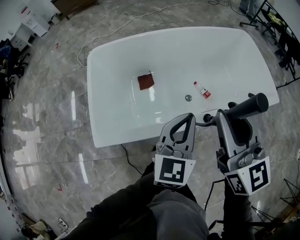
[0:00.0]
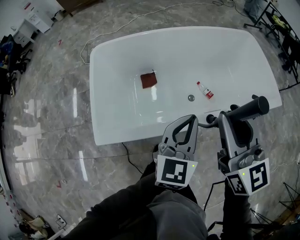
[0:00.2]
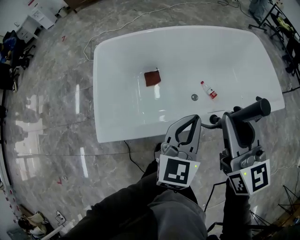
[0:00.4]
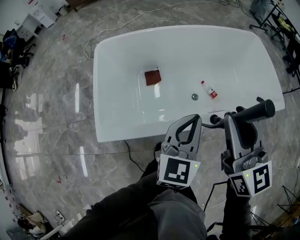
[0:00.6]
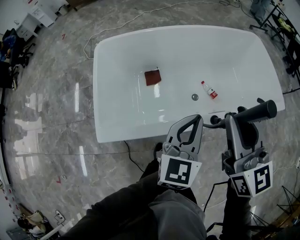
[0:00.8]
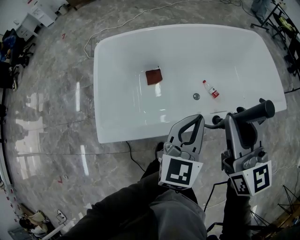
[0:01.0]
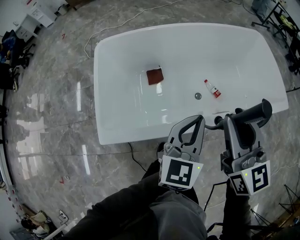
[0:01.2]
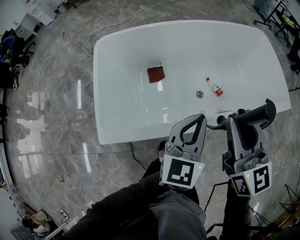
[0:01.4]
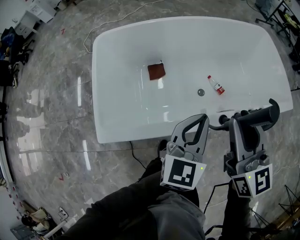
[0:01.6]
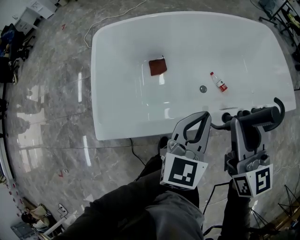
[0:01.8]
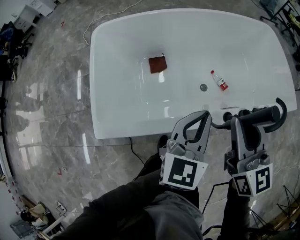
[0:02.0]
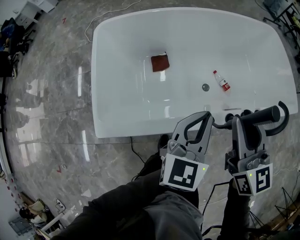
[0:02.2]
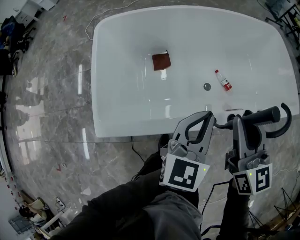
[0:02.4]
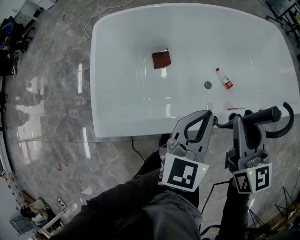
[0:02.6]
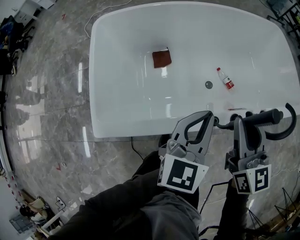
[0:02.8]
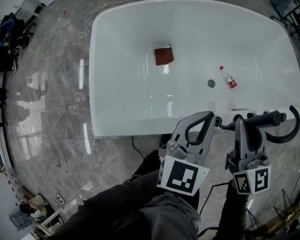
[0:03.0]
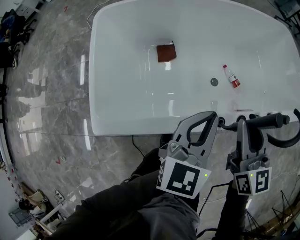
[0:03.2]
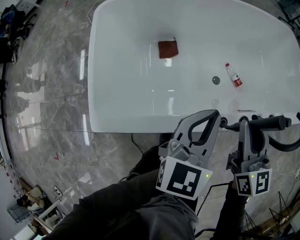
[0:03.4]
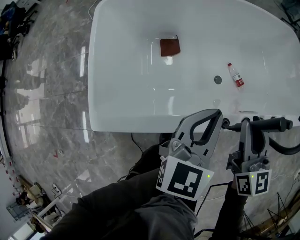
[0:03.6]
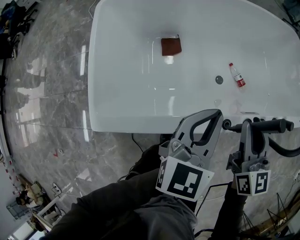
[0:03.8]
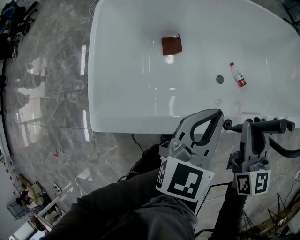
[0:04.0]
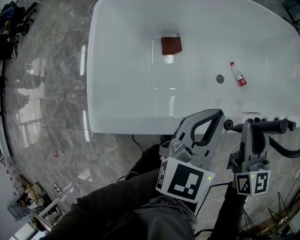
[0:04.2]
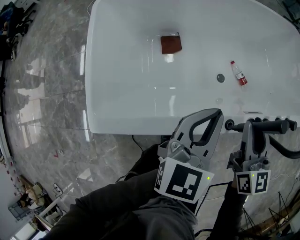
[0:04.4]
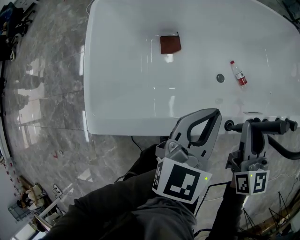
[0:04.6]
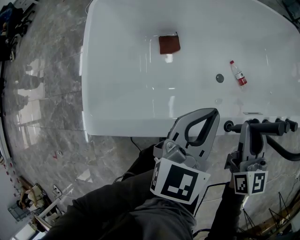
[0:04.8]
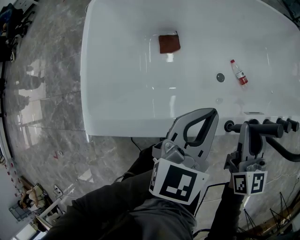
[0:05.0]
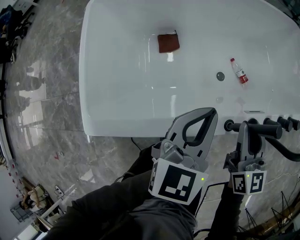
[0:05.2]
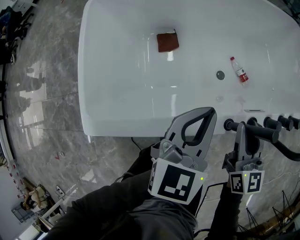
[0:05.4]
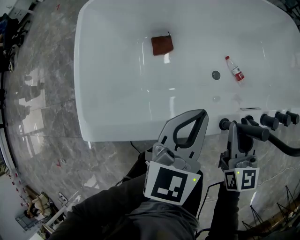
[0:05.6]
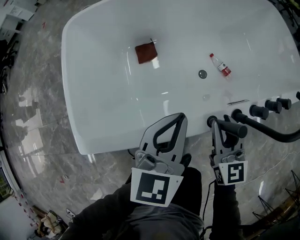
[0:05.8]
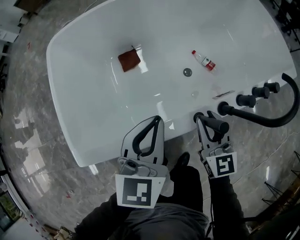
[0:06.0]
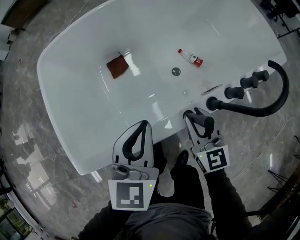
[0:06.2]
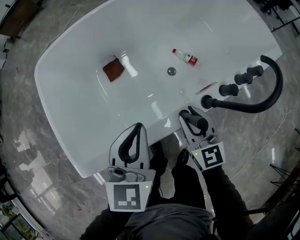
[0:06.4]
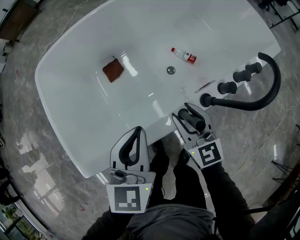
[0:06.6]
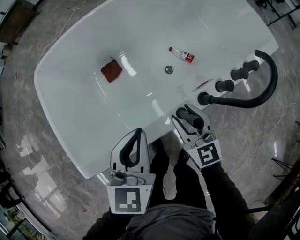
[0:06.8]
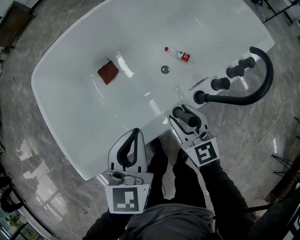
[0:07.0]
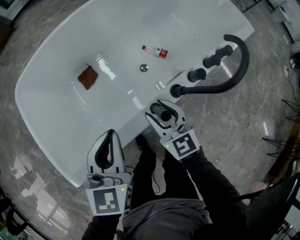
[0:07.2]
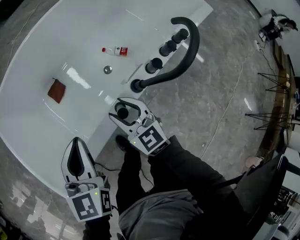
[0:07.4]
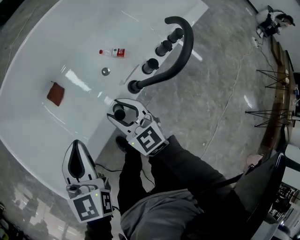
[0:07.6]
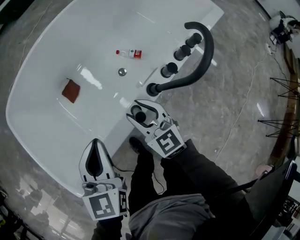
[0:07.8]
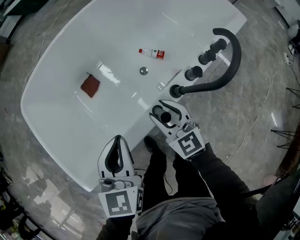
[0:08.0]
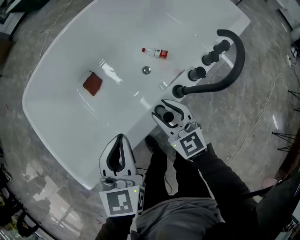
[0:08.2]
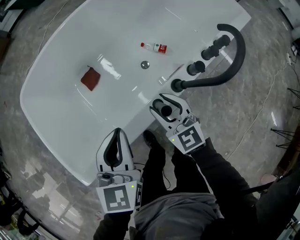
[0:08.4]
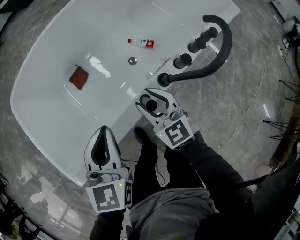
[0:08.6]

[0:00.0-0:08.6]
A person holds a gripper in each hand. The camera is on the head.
0:00.0 to 0:01.4: The right gripper is displaced downward by roughly 5 cm; the left gripper ends up some 5 cm from where it was.
0:01.4 to 0:02.8: The right gripper goes some 10 cm downward. The left gripper moves downward, roughly 5 cm.
0:02.8 to 0:04.4: The right gripper is displaced downward by approximately 10 cm; the left gripper shifts by approximately 5 cm.
0:04.4 to 0:05.8: The right gripper shifts some 10 cm downward.
0:05.8 to 0:08.6: The grippers move only a little.

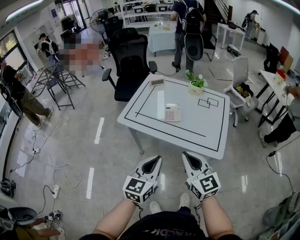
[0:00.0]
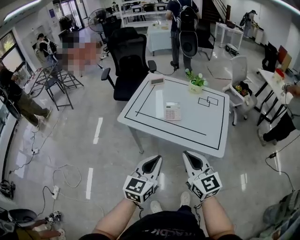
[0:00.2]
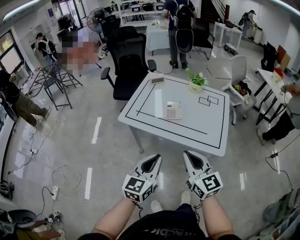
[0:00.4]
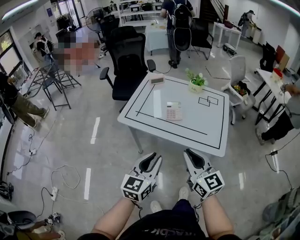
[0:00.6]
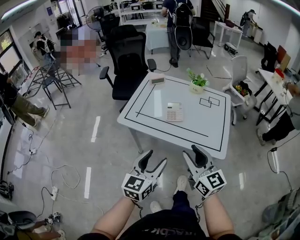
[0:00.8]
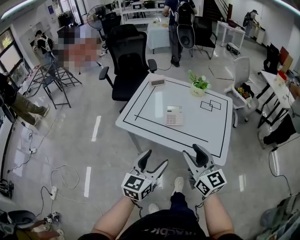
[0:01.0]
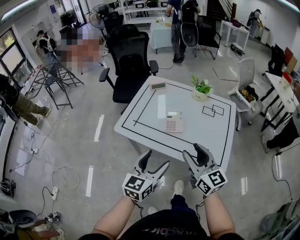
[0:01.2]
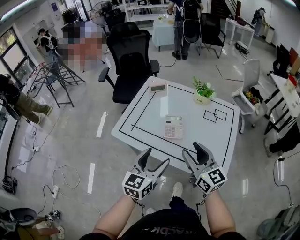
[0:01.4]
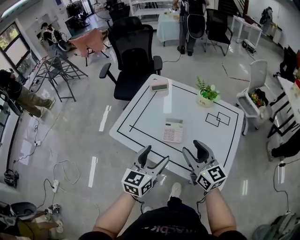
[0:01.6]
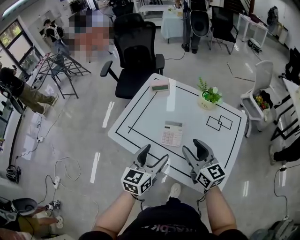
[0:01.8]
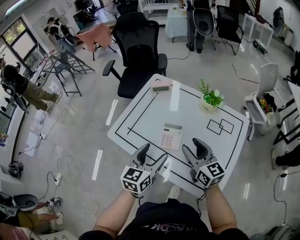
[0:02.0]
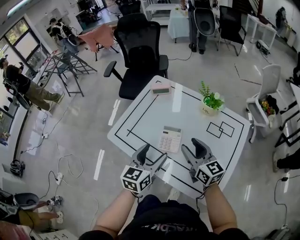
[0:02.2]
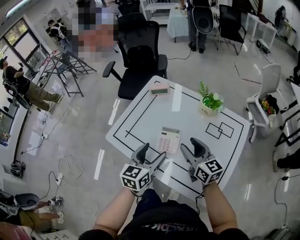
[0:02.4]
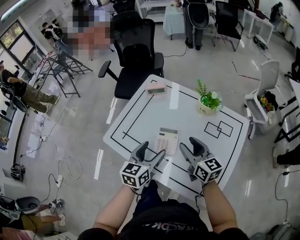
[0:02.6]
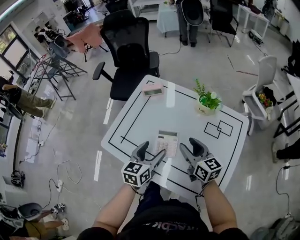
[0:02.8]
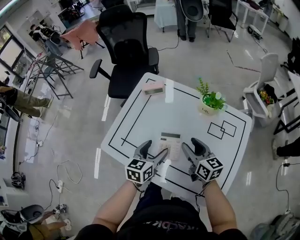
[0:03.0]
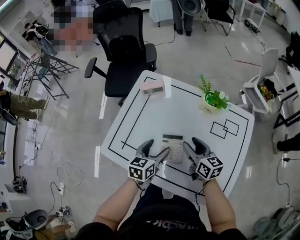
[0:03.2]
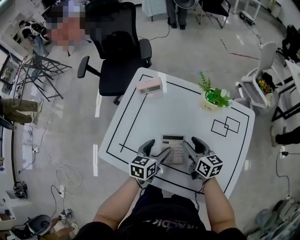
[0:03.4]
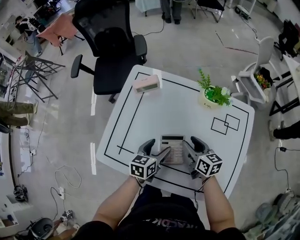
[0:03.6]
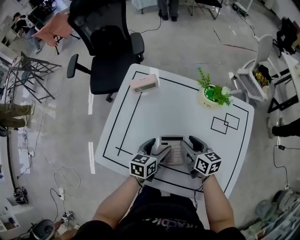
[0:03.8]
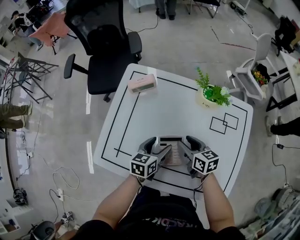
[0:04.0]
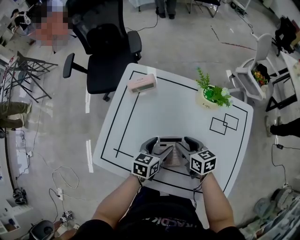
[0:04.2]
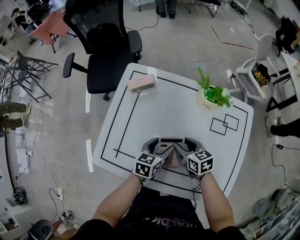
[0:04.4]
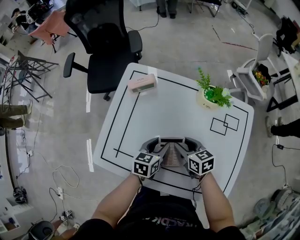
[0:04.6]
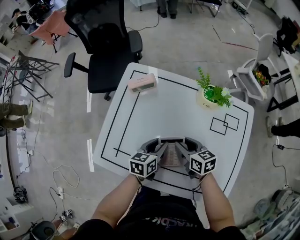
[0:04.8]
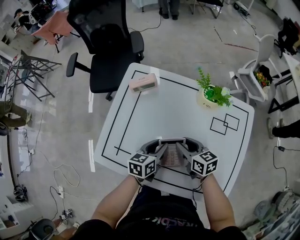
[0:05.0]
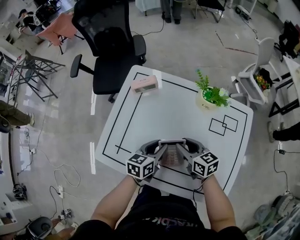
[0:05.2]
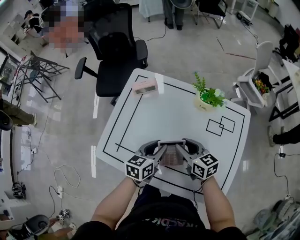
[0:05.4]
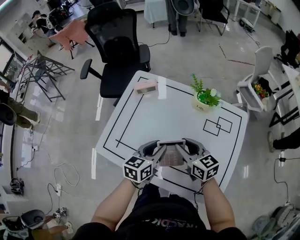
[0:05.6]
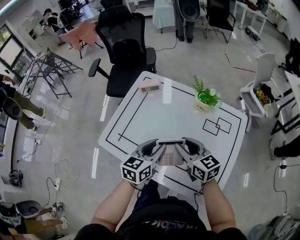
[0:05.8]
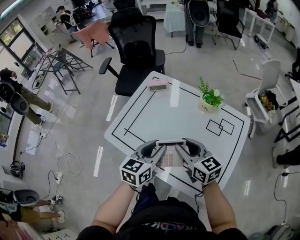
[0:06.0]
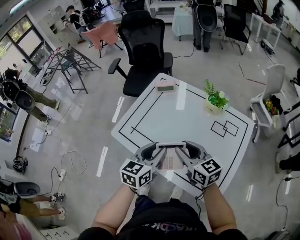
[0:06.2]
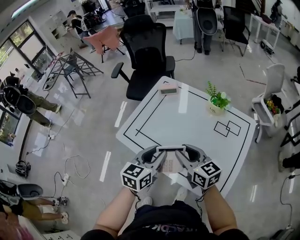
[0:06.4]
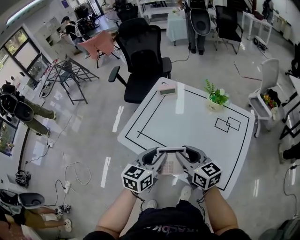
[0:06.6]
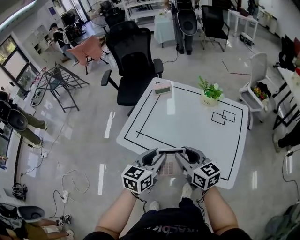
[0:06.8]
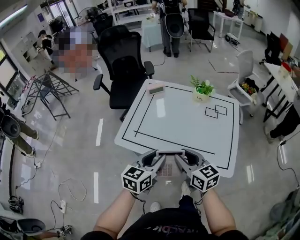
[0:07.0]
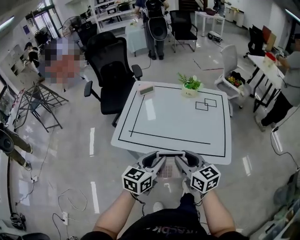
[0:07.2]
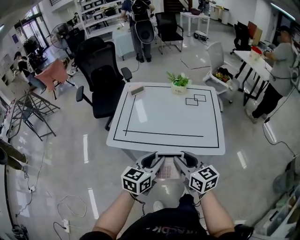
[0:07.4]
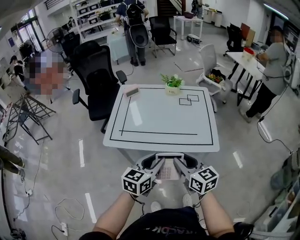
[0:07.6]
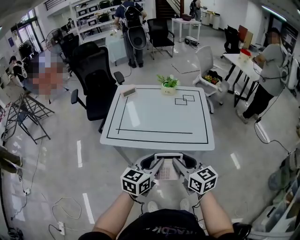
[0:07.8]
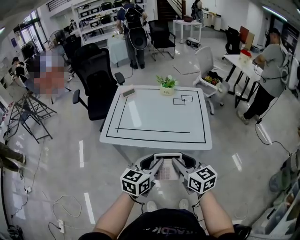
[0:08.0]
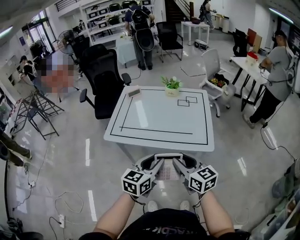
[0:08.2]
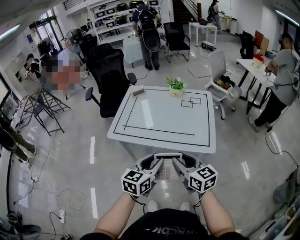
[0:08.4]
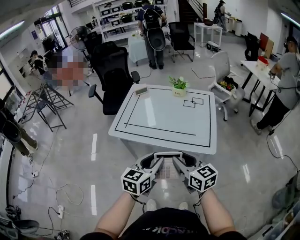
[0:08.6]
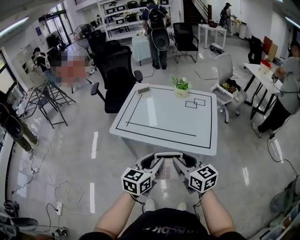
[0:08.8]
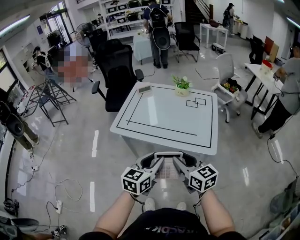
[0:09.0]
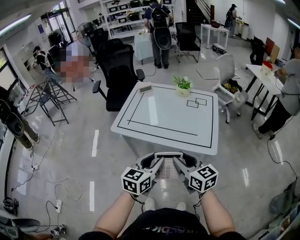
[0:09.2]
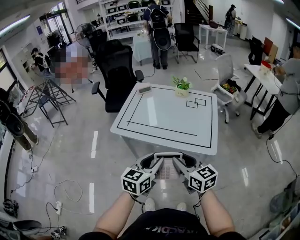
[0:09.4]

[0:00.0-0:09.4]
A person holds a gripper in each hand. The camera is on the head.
0:00.0 to 0:01.6: Both grippers move forward, roughly 25 cm. The right gripper opens. Meanwhile the left gripper opens up.
0:01.6 to 0:03.2: Both grippers move forward and downward, some 25 cm. The right gripper swivels some 20 degrees; the left gripper rotates some 20 degrees.
0:03.2 to 0:04.8: The grippers both shift downward by some 5 cm. The left gripper closes its fingers.
0:04.8 to 0:06.2: The two grippers go approximately 25 cm upward and backward. The right gripper turns by about 30 degrees. The left gripper swivels approximately 30 degrees.
0:06.2 to 0:07.8: The left gripper shifts by some 25 cm, and changes its angle by some 30 degrees, while the right gripper changes place by about 30 cm, and turns by about 30 degrees.
0:07.8 to 0:09.4: The left gripper shifts roughly 5 cm backward.

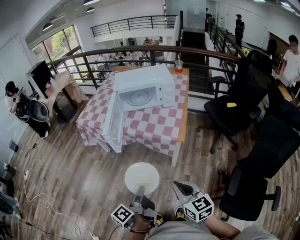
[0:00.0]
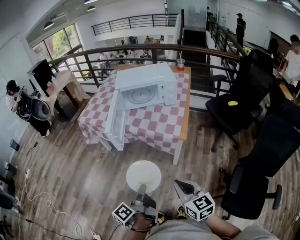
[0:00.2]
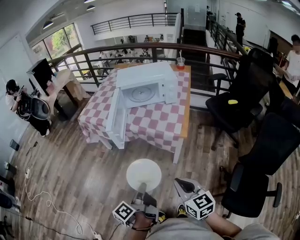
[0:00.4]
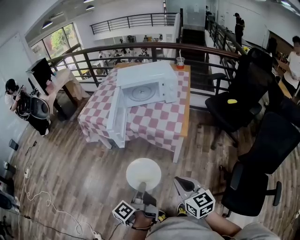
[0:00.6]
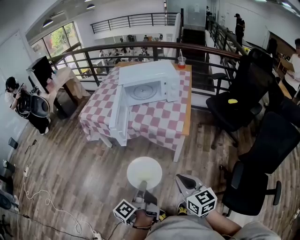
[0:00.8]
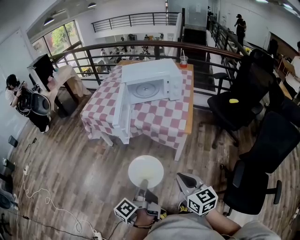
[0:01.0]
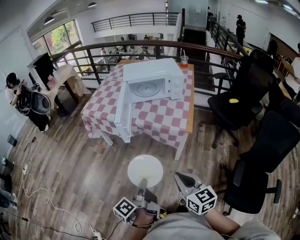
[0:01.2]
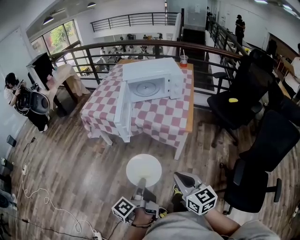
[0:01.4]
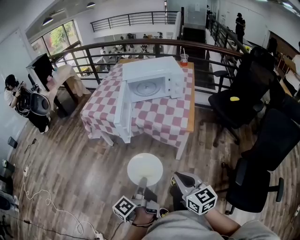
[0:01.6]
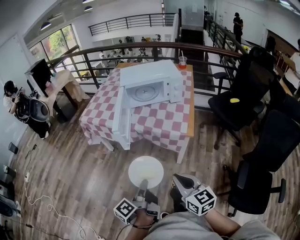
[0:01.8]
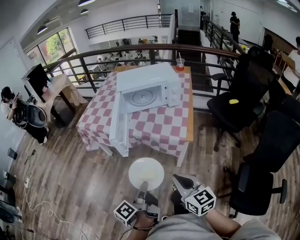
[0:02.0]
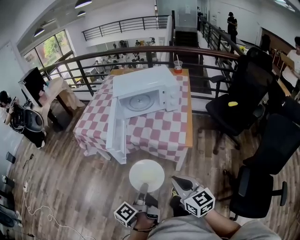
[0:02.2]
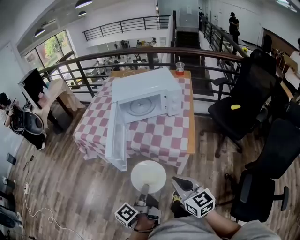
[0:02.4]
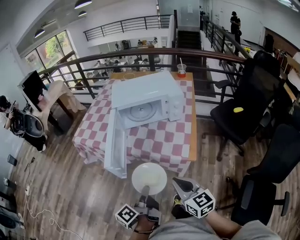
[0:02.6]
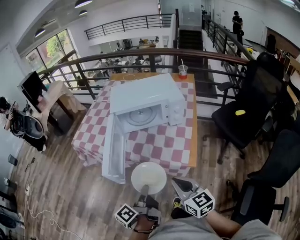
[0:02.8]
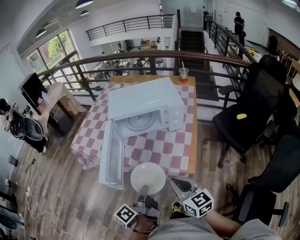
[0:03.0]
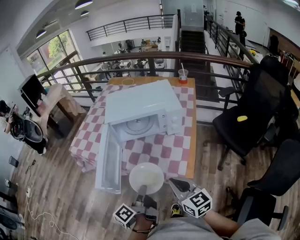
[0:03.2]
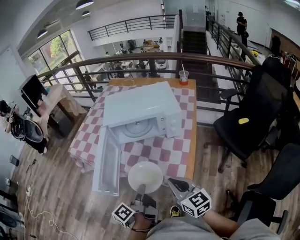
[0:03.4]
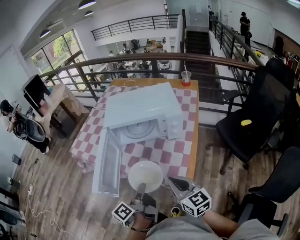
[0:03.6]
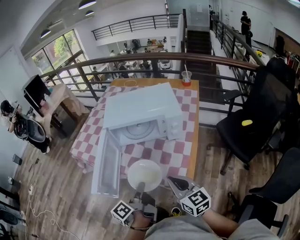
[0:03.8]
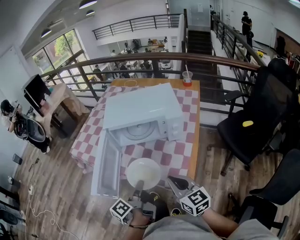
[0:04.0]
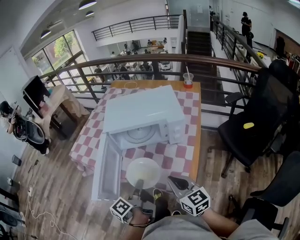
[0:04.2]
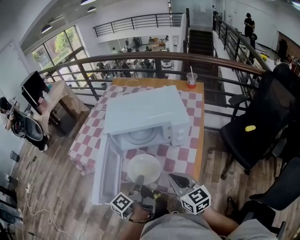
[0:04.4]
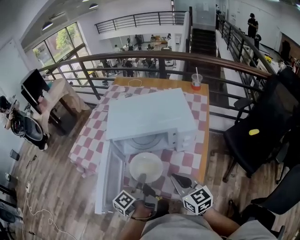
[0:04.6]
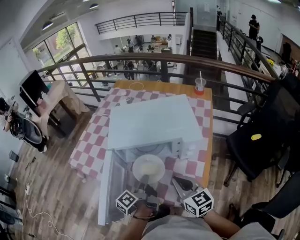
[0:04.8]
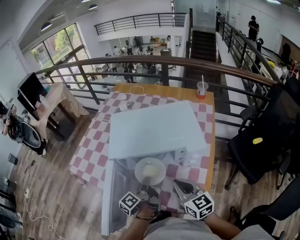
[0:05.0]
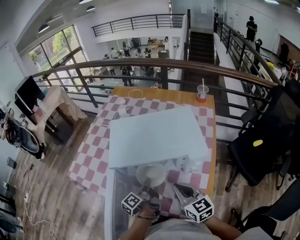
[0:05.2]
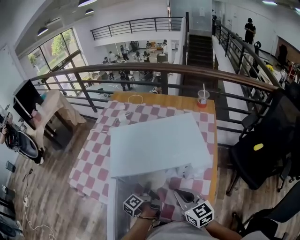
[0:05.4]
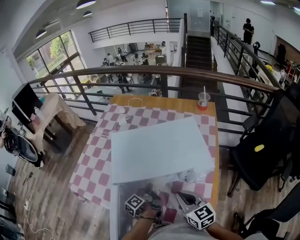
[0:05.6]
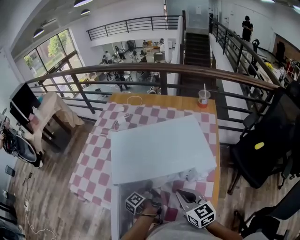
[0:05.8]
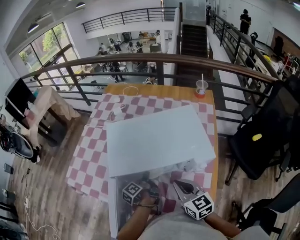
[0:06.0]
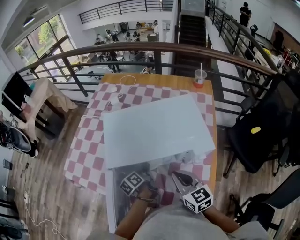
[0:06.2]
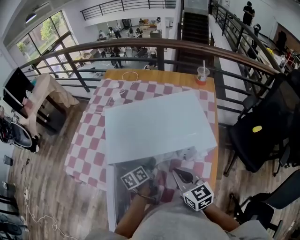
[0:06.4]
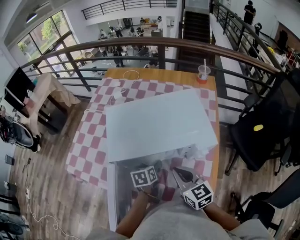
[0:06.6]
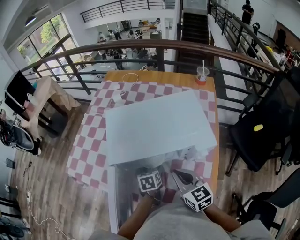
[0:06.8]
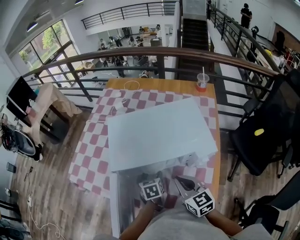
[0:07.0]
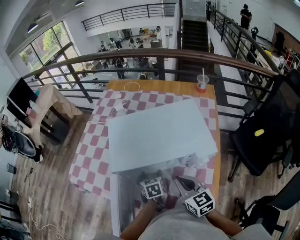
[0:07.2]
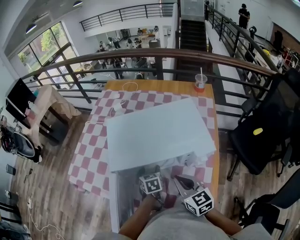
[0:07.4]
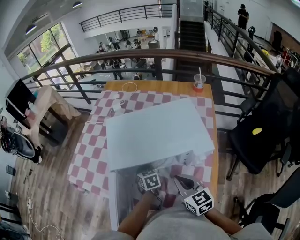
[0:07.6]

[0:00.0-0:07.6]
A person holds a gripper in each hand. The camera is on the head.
0:00.0 to 0:01.6: The two grippers go roughly 5 cm to the left.
0:01.6 to 0:03.0: Both grippers move forward, some 25 cm.
0:03.0 to 0:04.6: Both grippers travel together forward, some 20 cm.
0:04.6 to 0:06.0: The right gripper heads forward, covering some 15 cm. Meanwhile the left gripper goes approximately 25 cm forward and downward.
0:06.0 to 0:07.6: The left gripper rolls clockwise, seen from behind, by some 70 degrees, and opens and closes again.
